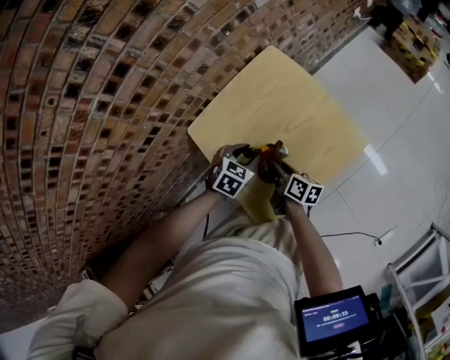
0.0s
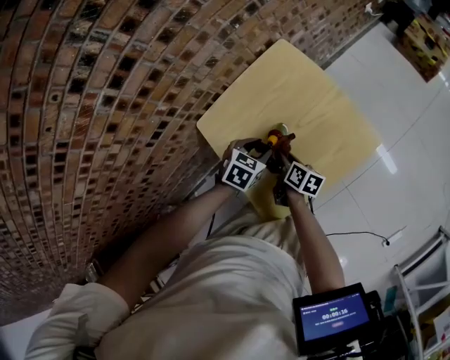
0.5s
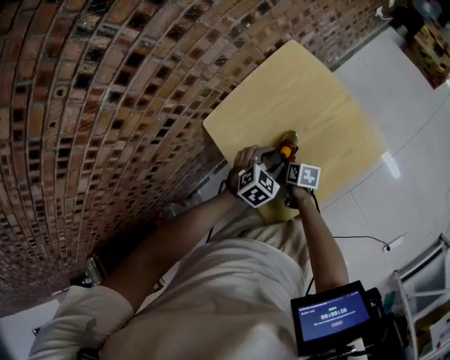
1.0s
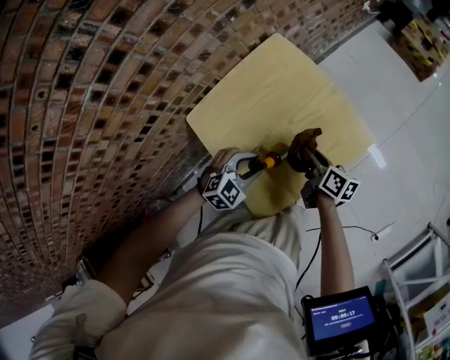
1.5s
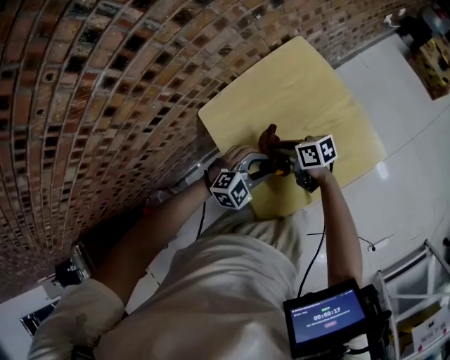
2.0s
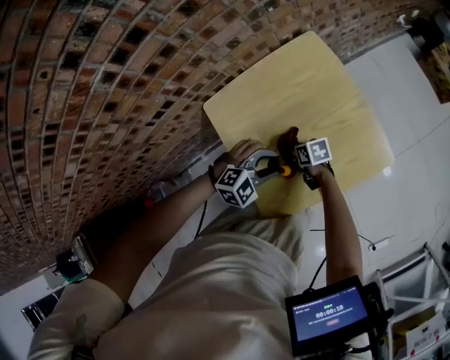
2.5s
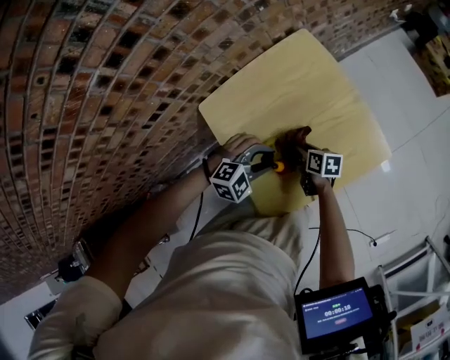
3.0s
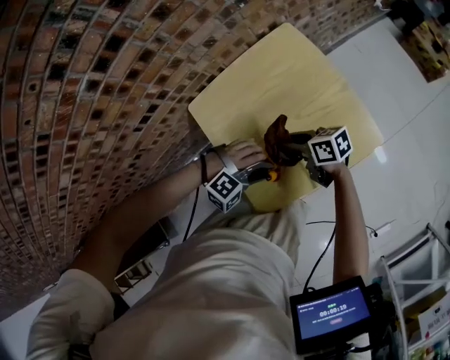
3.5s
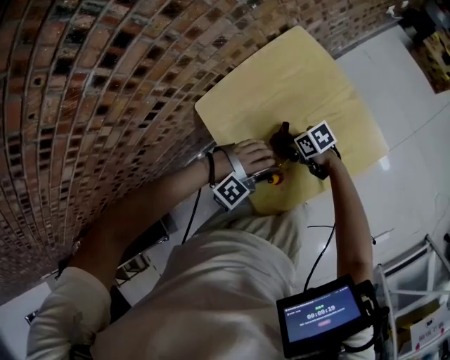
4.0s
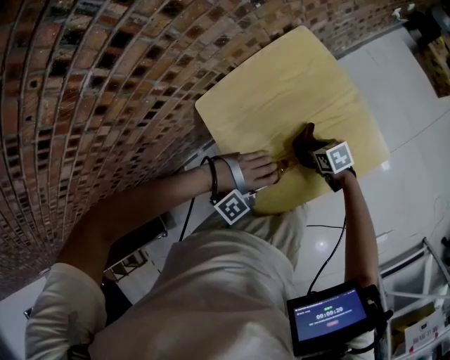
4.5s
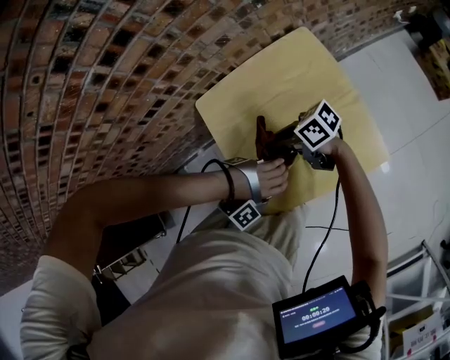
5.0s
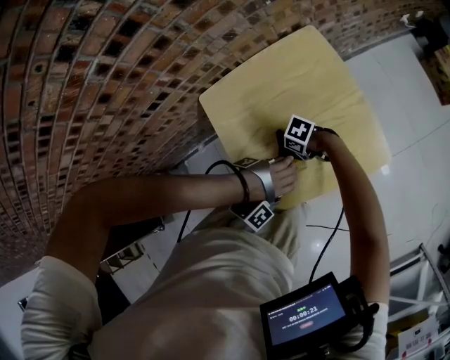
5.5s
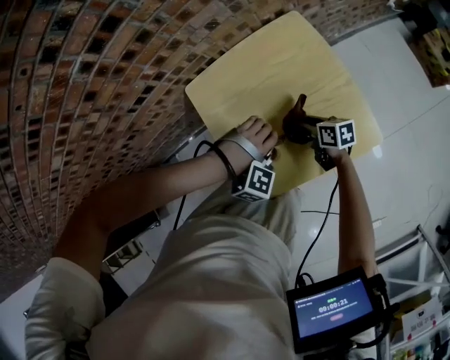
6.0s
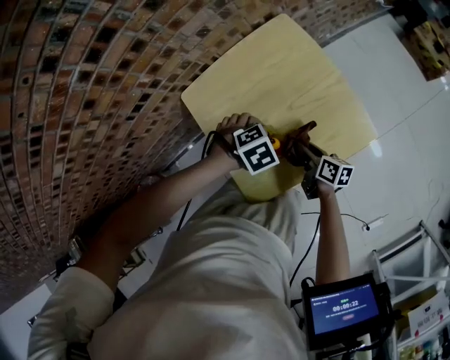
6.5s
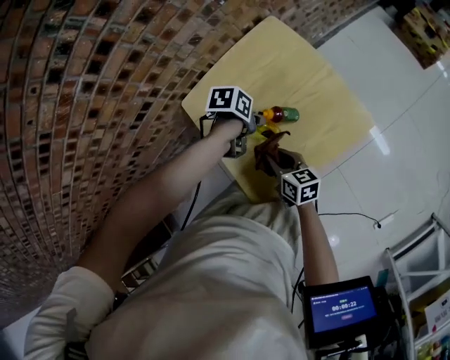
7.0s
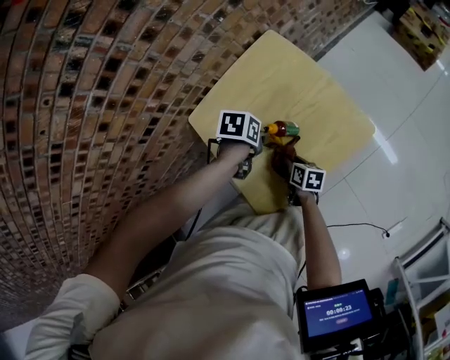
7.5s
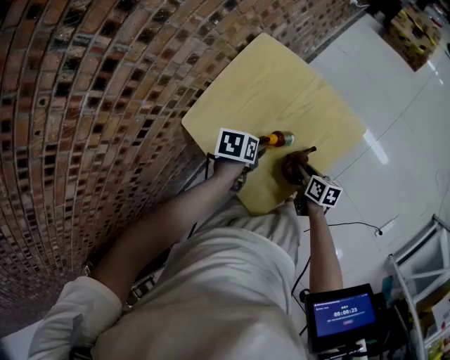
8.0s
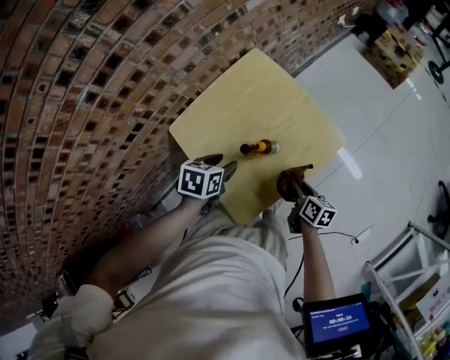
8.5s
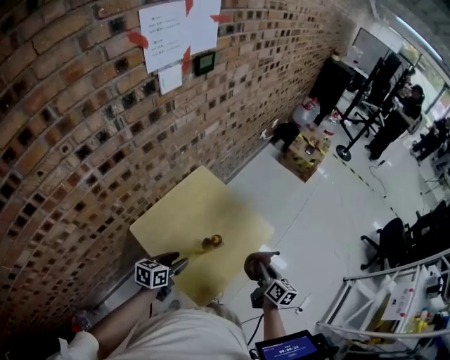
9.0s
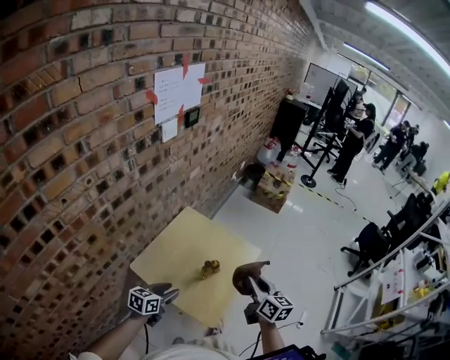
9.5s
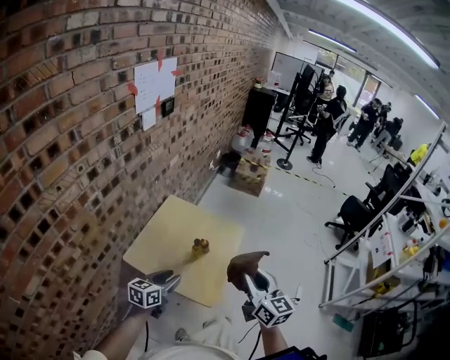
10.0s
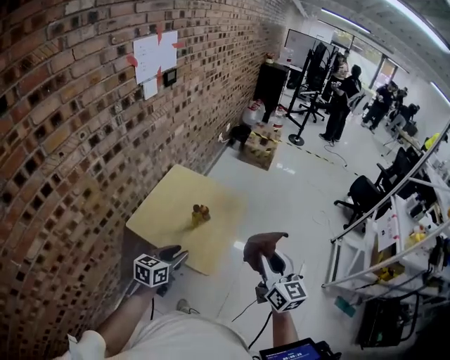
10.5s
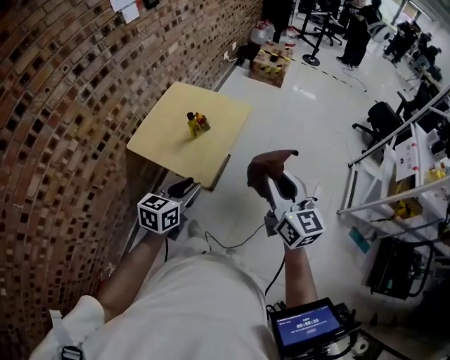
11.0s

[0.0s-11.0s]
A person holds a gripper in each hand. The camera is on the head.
0.0s to 2.0s: The right gripper moves about 10 cm downward and comes back, and changes its angle by approximately 50 degrees. The left gripper moves some 5 cm, and changes its angle by approximately 40 degrees.
2.0s to 3.5s: The left gripper shifts by some 5 cm, and turns by roughly 40 degrees. The right gripper travels downward and back again, roughly 15 cm each way.
3.5s to 5.5s: The left gripper changes its angle by about 50 degrees; the right gripper moves up and down over approximately 15 cm, changing direction 2 times, and tilts its fingers roughly 30 degrees downward.
5.5s to 7.5s: The right gripper moves approximately 10 cm upward and comes back, and swivels about 90 degrees. The left gripper changes place by some 10 cm, and rolls counterclockwise, seen from behind, by roughly 150 degrees.
7.5s to 9.0s: The right gripper shifts some 25 cm upward, and swivels about 40 degrees; the left gripper shifts about 15 cm upward, and tips its fingers upward by some 40 degrees.
9.0s to 11.0s: The right gripper travels backward and upward by about 40 cm, and turns by about 40 degrees. Meanwhile the left gripper heads backward, to the right and upward, covering some 35 cm, and changes its angle by approximately 30 degrees.

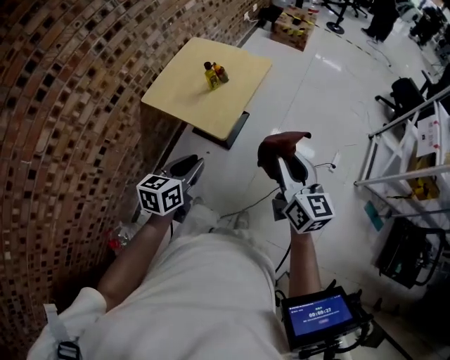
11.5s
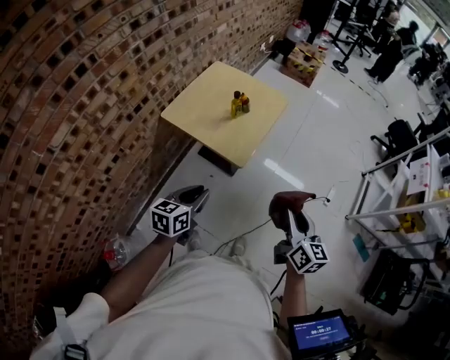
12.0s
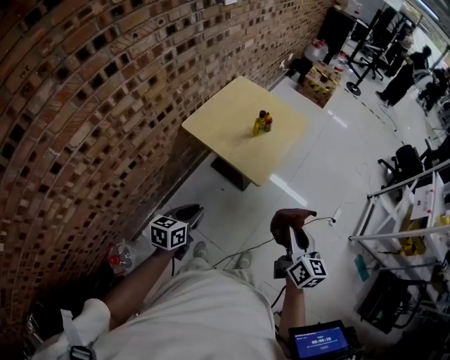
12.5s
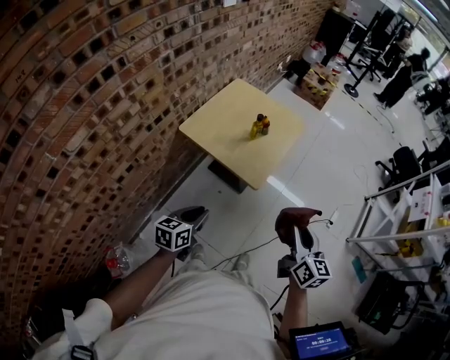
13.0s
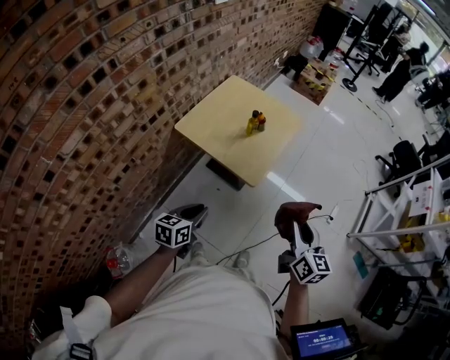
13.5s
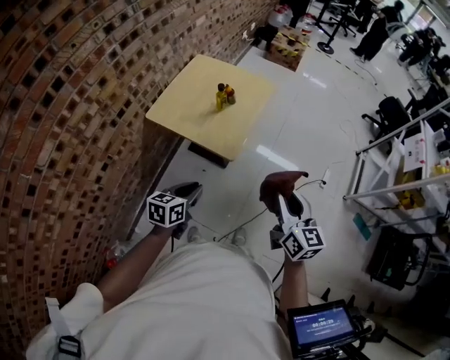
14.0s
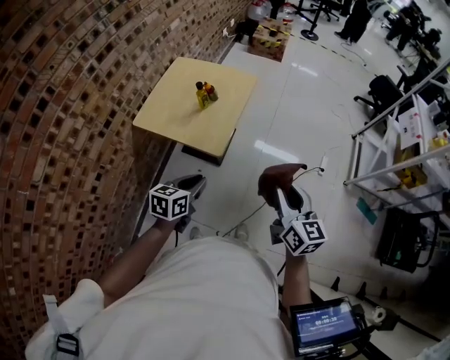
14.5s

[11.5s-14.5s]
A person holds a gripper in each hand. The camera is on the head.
11.5s to 13.0s: The right gripper shifts about 10 cm to the left; the left gripper moves to the left, approximately 20 cm.
13.0s to 14.5s: The right gripper moves to the right, about 10 cm. The left gripper heads to the right and forward, covering approximately 15 cm.

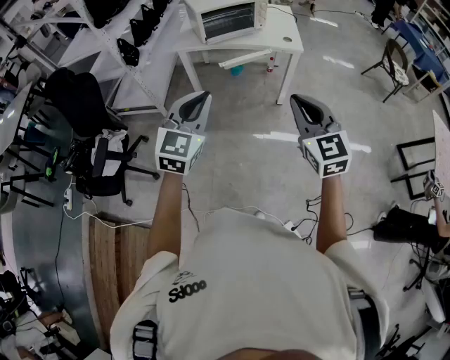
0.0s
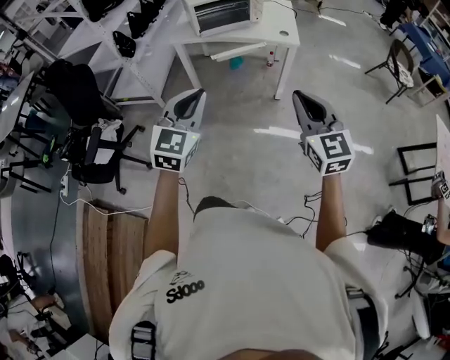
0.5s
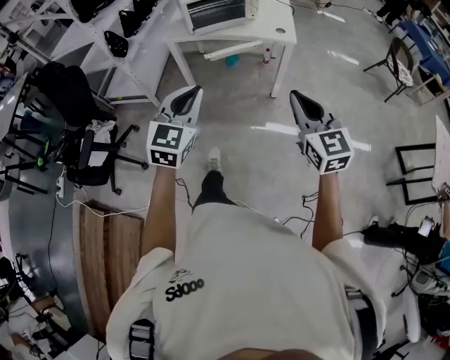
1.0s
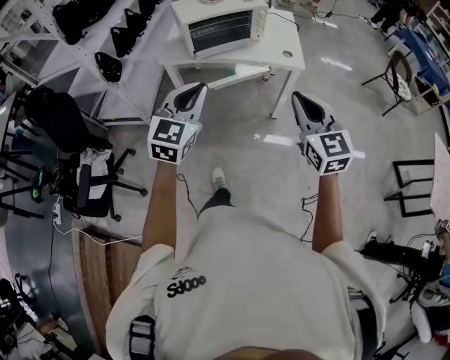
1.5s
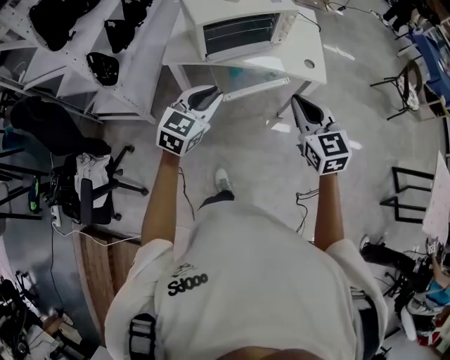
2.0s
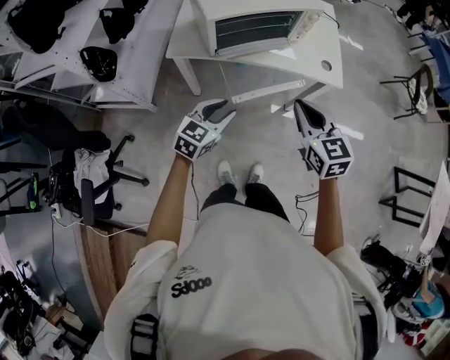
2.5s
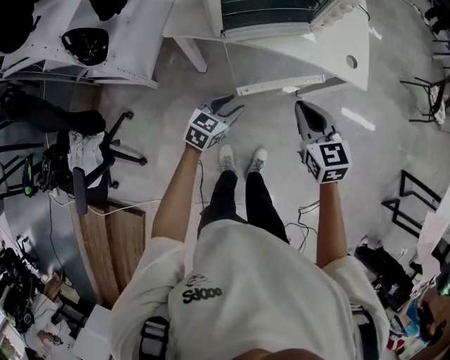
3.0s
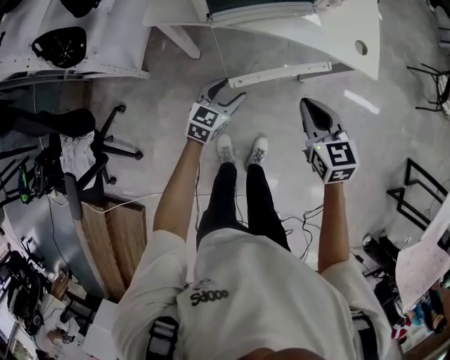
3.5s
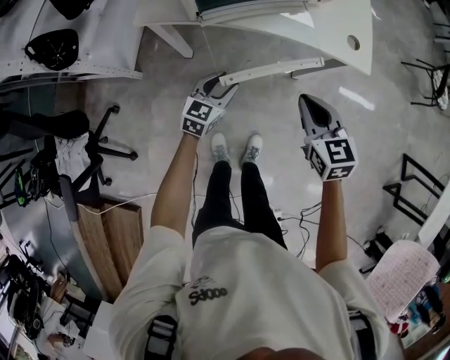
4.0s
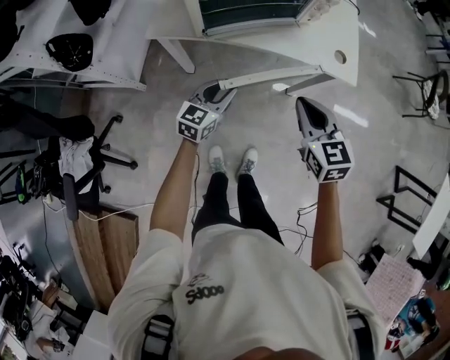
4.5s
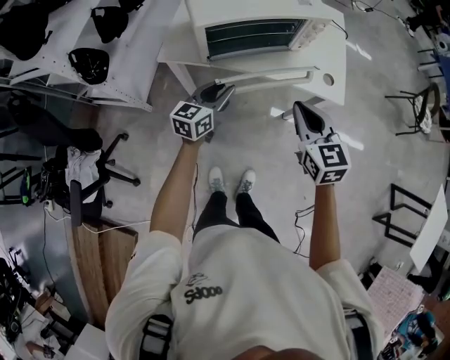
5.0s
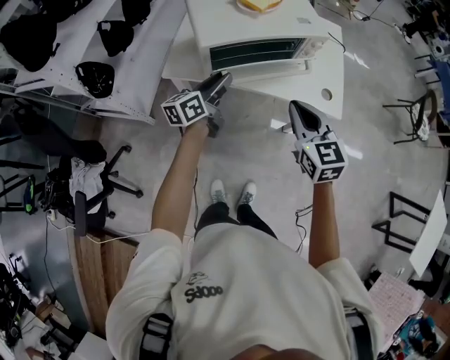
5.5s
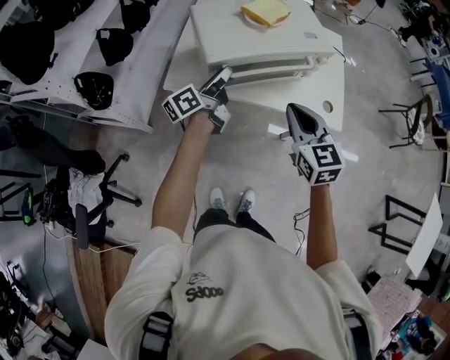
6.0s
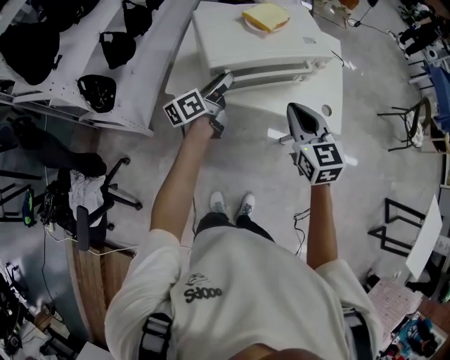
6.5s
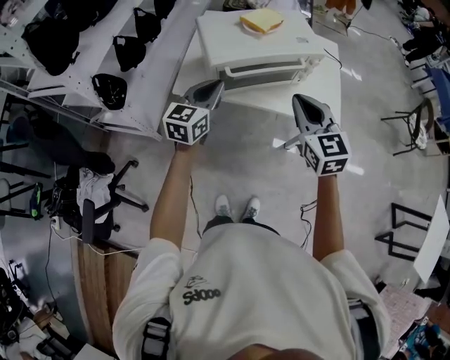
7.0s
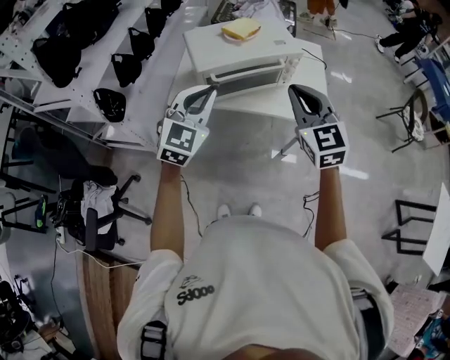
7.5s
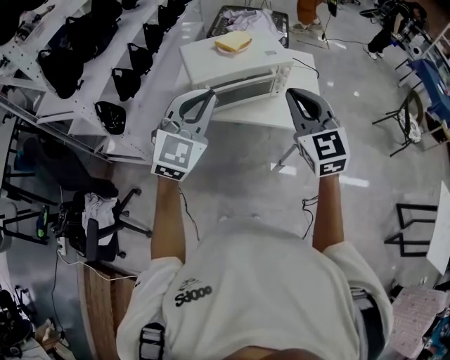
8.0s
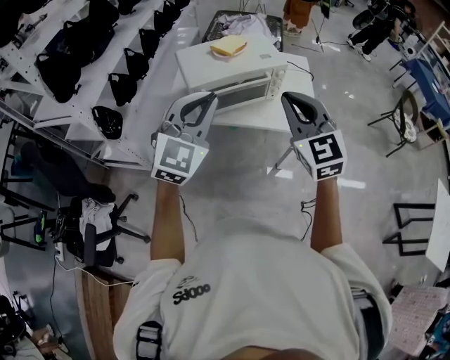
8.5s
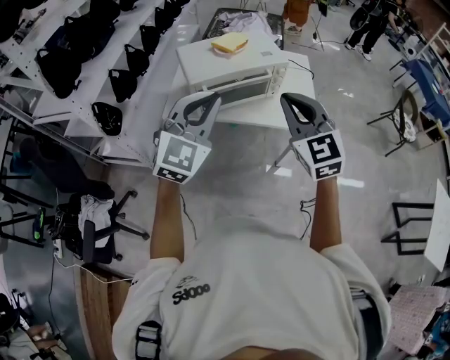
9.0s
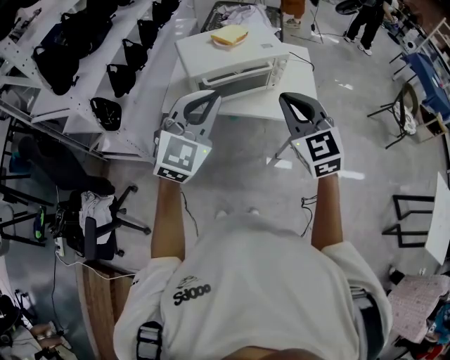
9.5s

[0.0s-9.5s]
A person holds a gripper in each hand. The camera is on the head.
0.0s to 2.0s: The pair of grippers is taken forward, some 40 cm.
2.0s to 4.0s: Both grippers move downward and forward, roughly 30 cm. The left gripper opens up.
4.0s to 5.5s: The left gripper travels upward and forward by some 25 cm, and turns by some 40 degrees. The right gripper heads upward, covering some 20 cm.
5.5s to 7.5s: The right gripper moves upward, about 15 cm. The left gripper travels upward and backward by about 20 cm, rolls clockwise, seen from behind, by roughly 70 degrees, and closes its fingers.
7.5s to 9.5s: The left gripper shifts approximately 10 cm backward and upward, while the right gripper goes approximately 5 cm backward.

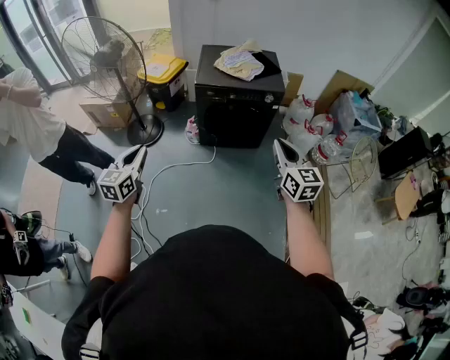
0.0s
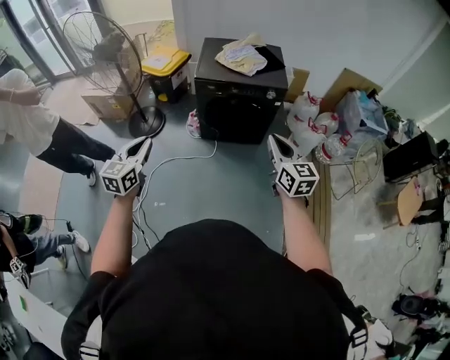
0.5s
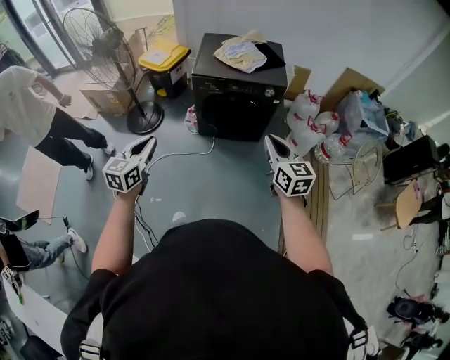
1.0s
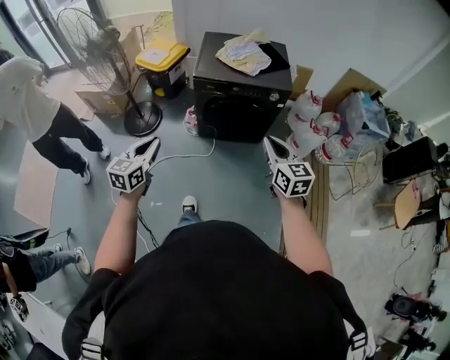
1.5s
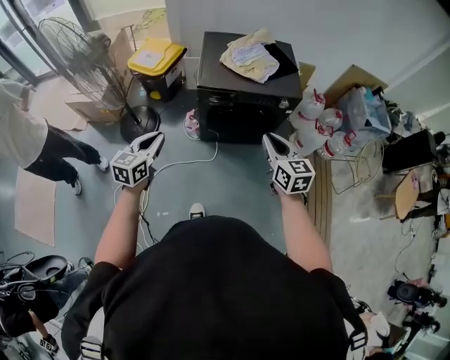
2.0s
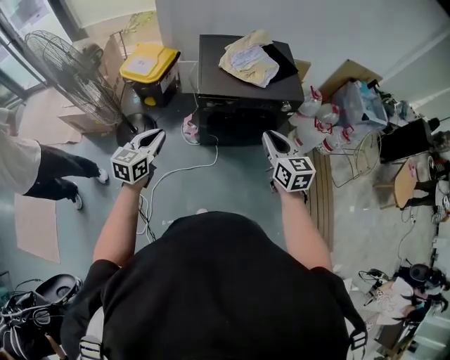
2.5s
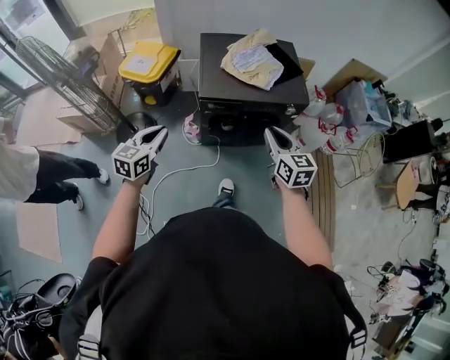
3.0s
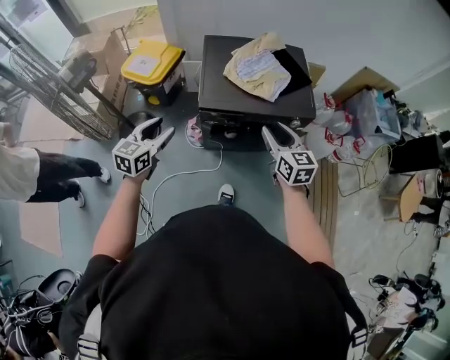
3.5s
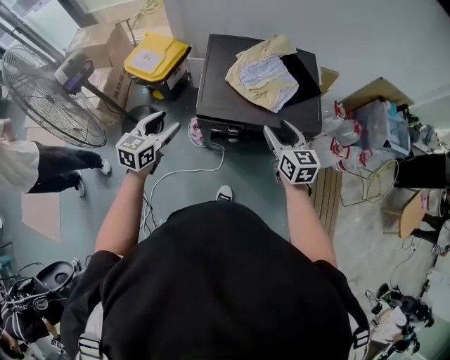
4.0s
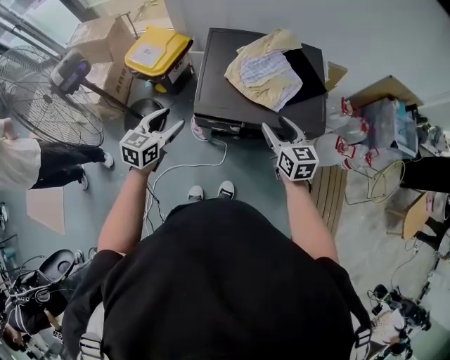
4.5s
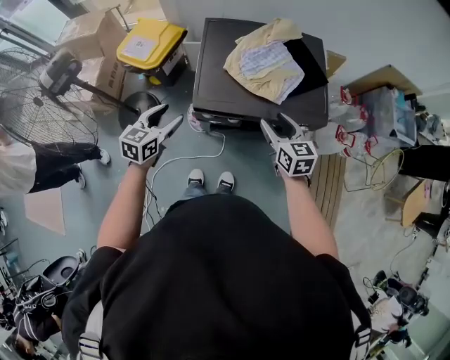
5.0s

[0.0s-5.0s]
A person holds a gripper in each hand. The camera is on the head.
0.0s to 2.5s: The left gripper travels forward by approximately 35 cm; the right gripper travels forward and to the left by approximately 30 cm.
2.5s to 5.0s: The right gripper is displaced forward and downward by some 30 cm, and opens up. The left gripper shifts about 25 cm forward, and opens its fingers.
